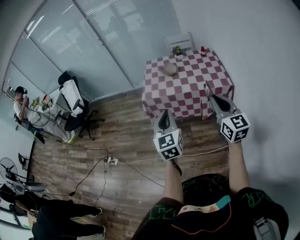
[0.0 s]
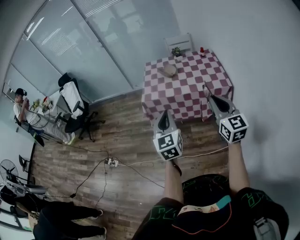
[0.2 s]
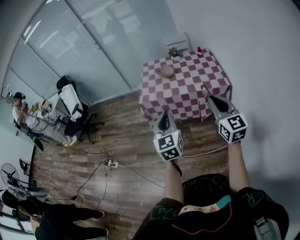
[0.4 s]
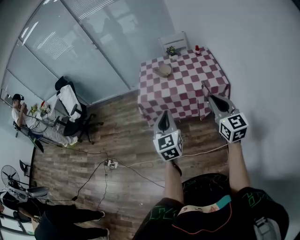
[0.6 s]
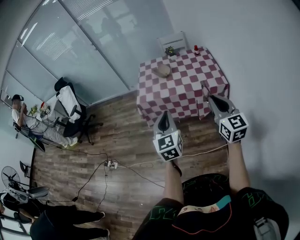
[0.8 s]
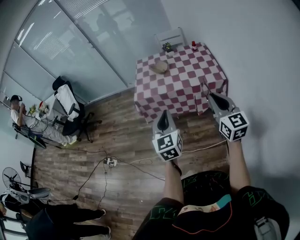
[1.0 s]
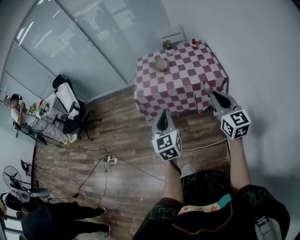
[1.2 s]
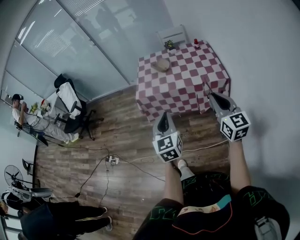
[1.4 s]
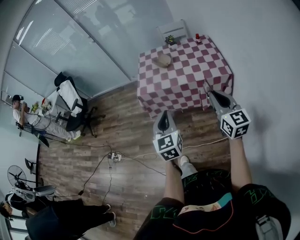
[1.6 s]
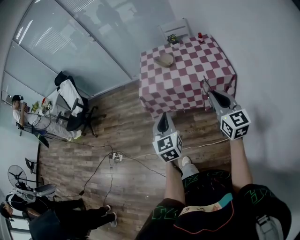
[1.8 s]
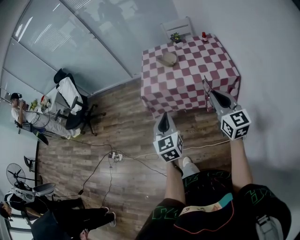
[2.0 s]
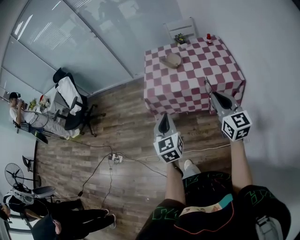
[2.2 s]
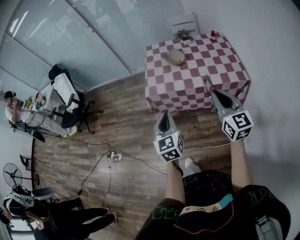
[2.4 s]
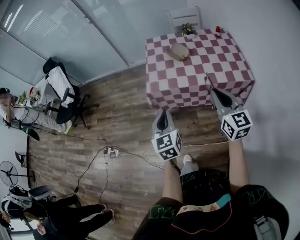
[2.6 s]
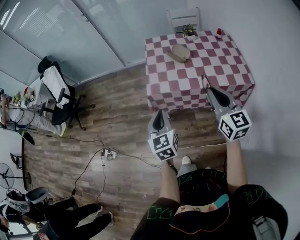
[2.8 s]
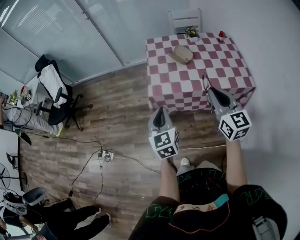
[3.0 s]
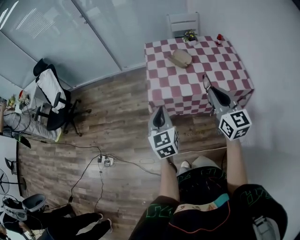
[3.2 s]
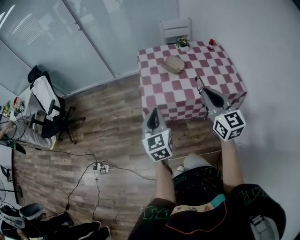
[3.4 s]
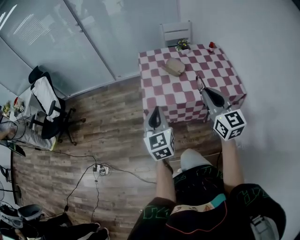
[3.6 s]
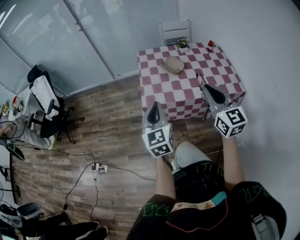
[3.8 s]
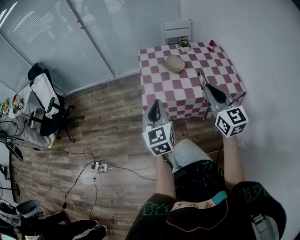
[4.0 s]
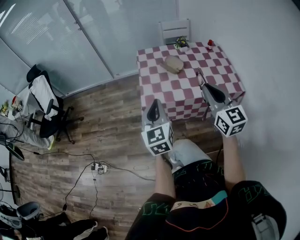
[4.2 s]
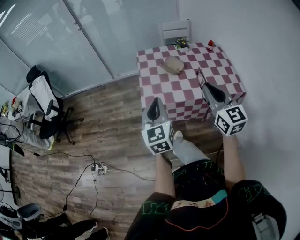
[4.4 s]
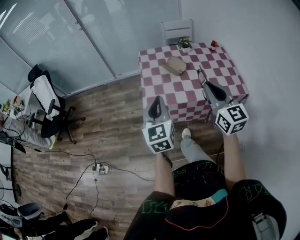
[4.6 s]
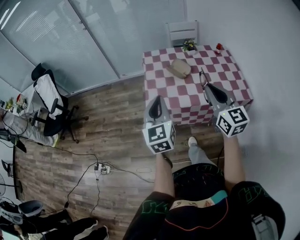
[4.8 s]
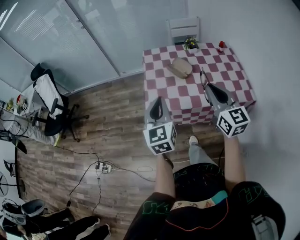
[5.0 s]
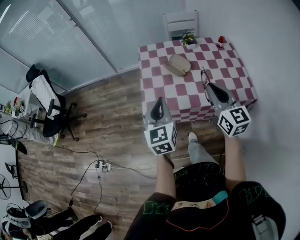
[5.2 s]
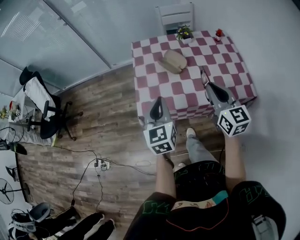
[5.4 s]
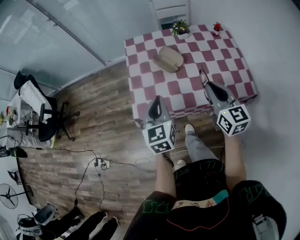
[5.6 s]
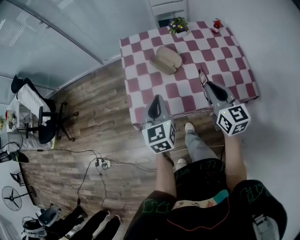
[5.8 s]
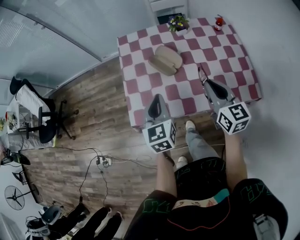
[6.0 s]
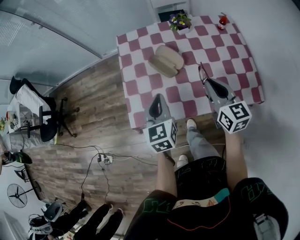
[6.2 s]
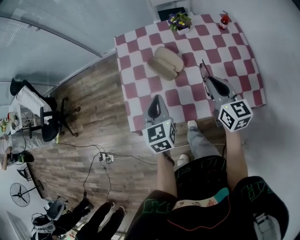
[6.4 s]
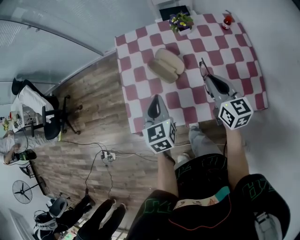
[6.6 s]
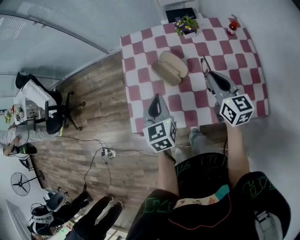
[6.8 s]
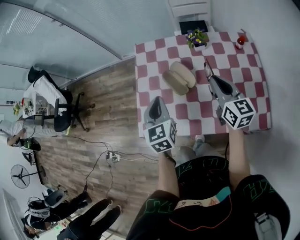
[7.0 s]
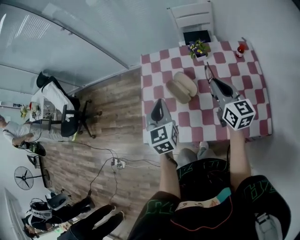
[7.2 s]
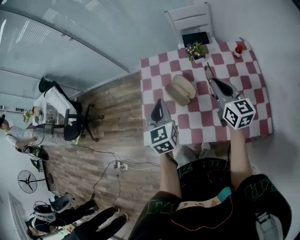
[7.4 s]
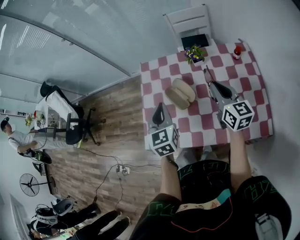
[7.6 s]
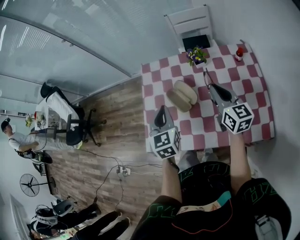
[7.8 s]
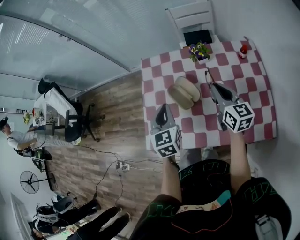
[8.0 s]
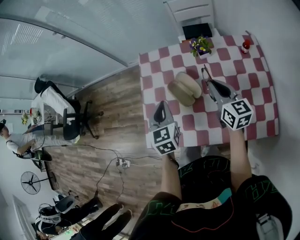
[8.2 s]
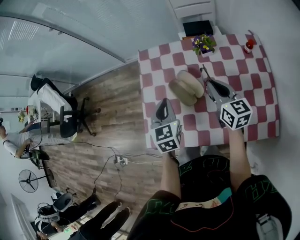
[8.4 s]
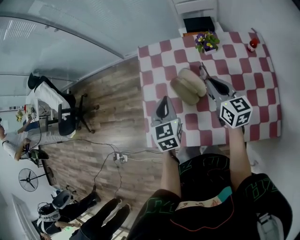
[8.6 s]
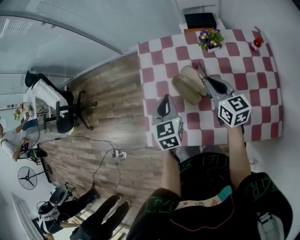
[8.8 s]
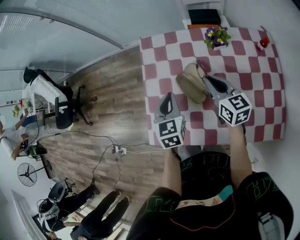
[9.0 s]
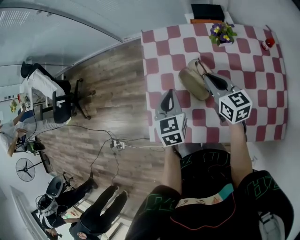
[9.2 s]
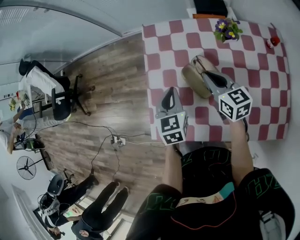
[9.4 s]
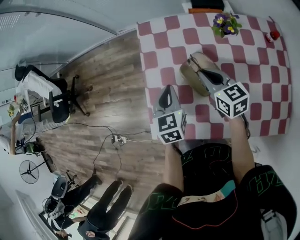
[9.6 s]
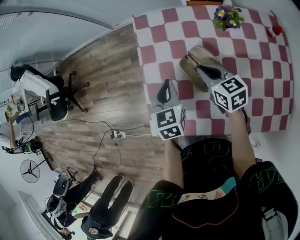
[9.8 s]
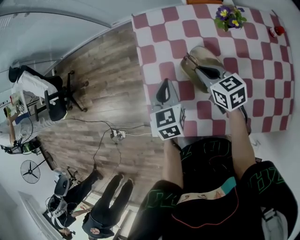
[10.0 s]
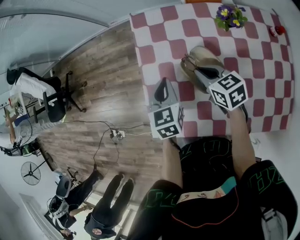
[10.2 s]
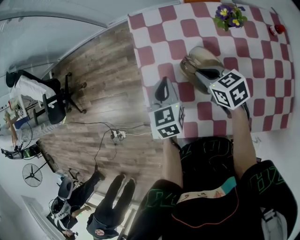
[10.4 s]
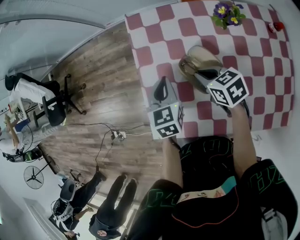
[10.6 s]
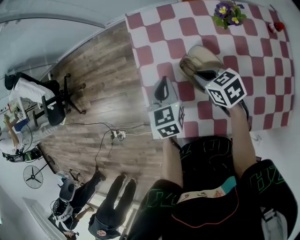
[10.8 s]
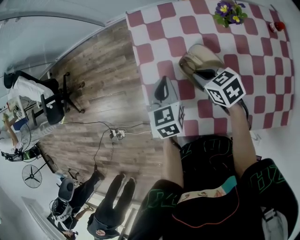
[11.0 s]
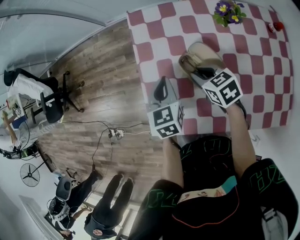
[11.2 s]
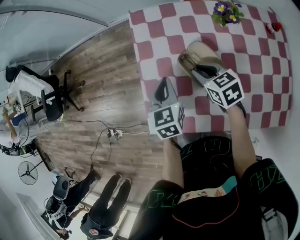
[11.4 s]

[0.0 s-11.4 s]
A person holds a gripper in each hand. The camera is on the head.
0.0 to 1.4 s: The left gripper changes place by some 5 cm. Meanwhile the right gripper changes place by about 5 cm.
1.4 to 2.8 s: Both grippers travel together forward and to the left, approximately 25 cm.
2.8 to 4.2 s: The right gripper changes place by some 5 cm, while the left gripper travels forward and upward by about 10 cm.
4.2 to 5.6 s: Both grippers move forward, downward and to the right, roughly 20 cm.
5.6 to 7.2 s: The two grippers go some 20 cm forward.
7.2 to 8.6 s: Both grippers move downward and forward, roughly 10 cm.
8.6 to 10.0 s: The right gripper goes some 15 cm to the left and downward, and turns by some 30 degrees; the left gripper heads downward, covering some 5 cm.
10.0 to 11.4 s: The grippers make only small movements.

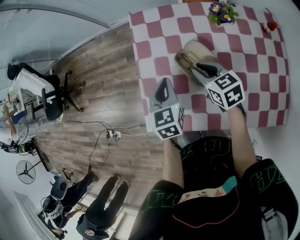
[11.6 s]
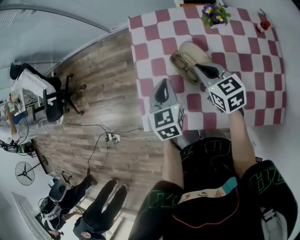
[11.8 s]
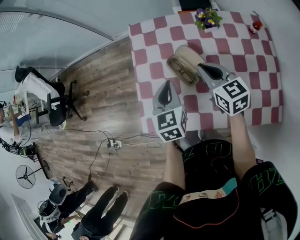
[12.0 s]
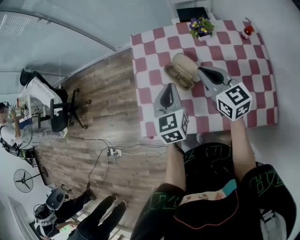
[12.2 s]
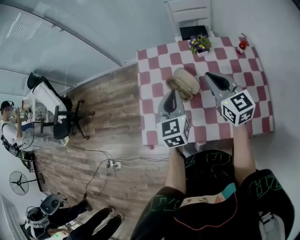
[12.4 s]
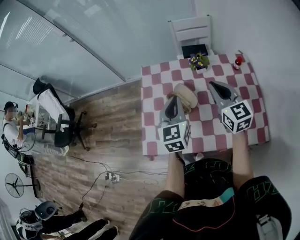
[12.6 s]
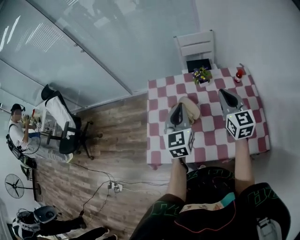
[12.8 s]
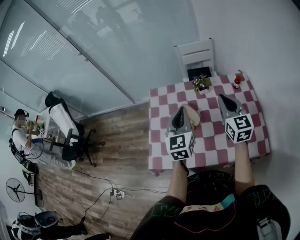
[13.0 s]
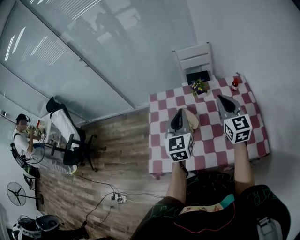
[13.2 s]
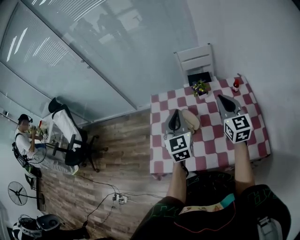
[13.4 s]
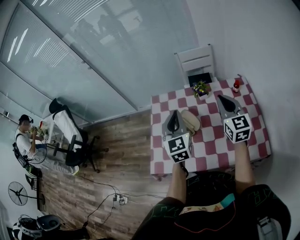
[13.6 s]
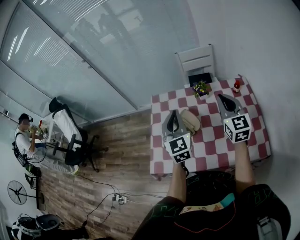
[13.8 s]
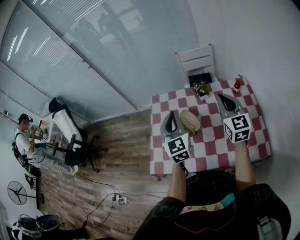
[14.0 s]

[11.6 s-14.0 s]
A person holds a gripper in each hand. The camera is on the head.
11.6 to 12.8 s: Both grippers travel together upward and to the right, approximately 25 cm. The left gripper turns by roughly 30 degrees; the right gripper points its fingers roughly 30 degrees further upward, and closes its fingers.
12.8 to 14.0 s: The grippers move only a little.

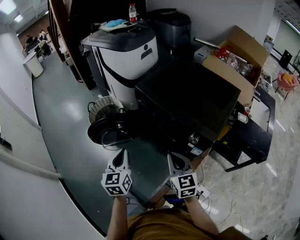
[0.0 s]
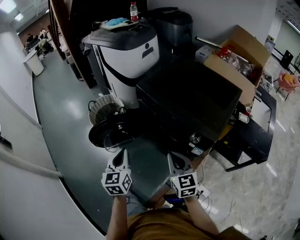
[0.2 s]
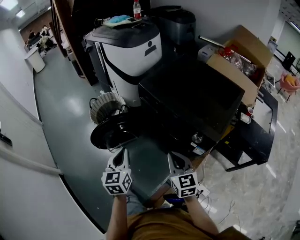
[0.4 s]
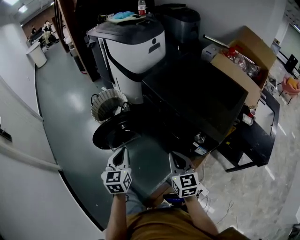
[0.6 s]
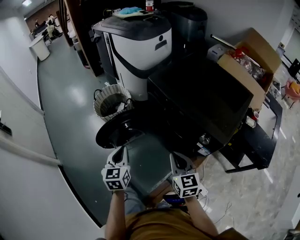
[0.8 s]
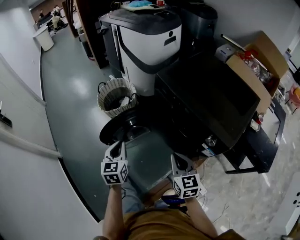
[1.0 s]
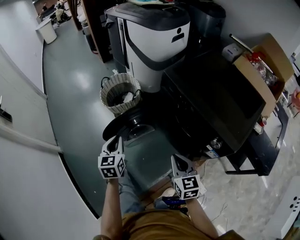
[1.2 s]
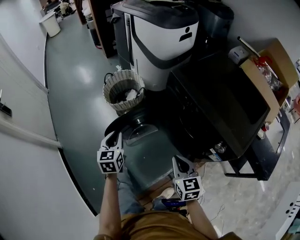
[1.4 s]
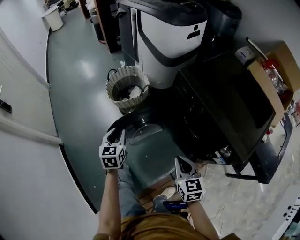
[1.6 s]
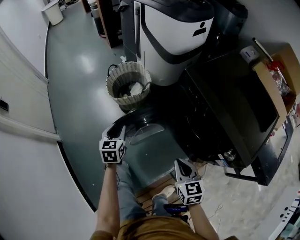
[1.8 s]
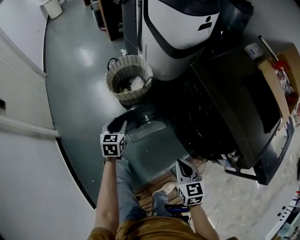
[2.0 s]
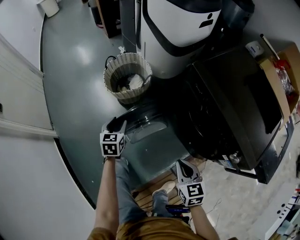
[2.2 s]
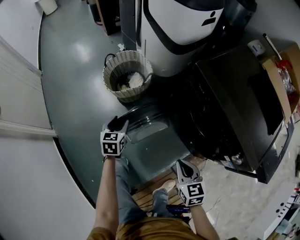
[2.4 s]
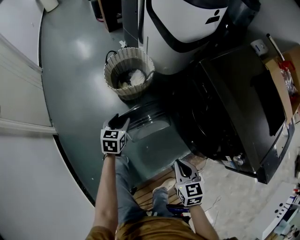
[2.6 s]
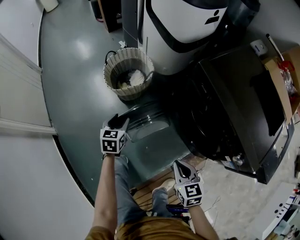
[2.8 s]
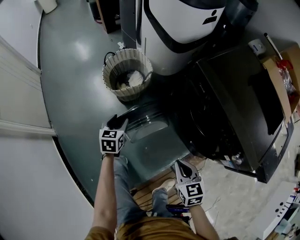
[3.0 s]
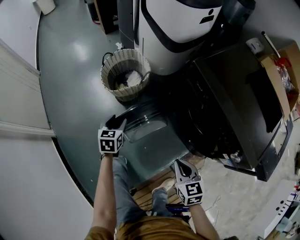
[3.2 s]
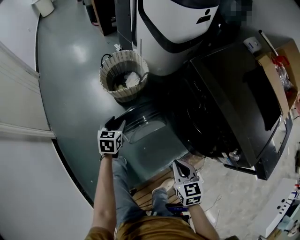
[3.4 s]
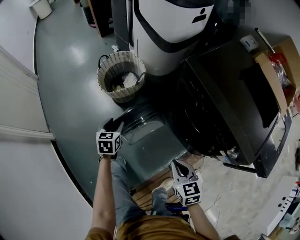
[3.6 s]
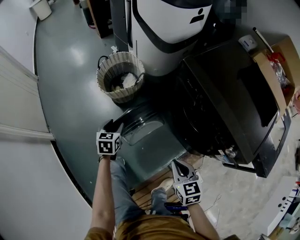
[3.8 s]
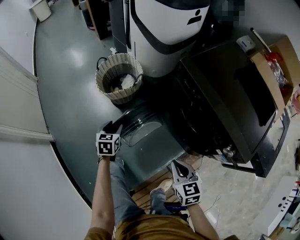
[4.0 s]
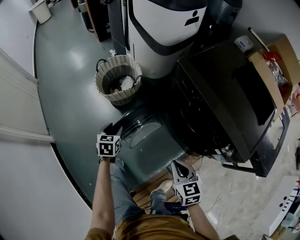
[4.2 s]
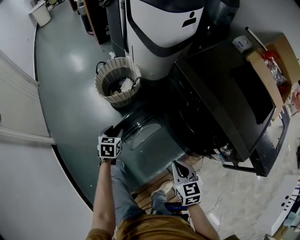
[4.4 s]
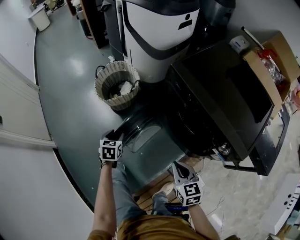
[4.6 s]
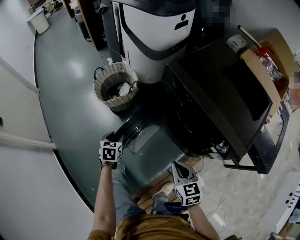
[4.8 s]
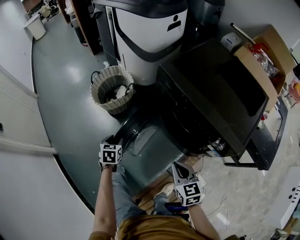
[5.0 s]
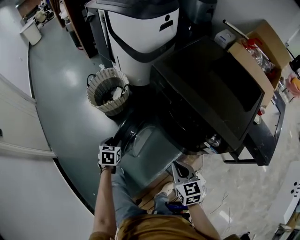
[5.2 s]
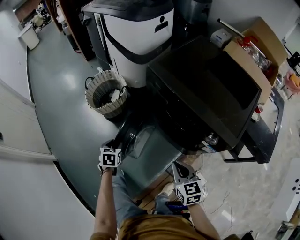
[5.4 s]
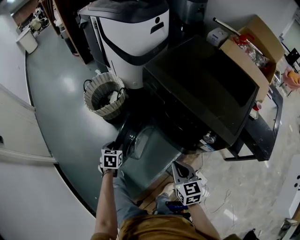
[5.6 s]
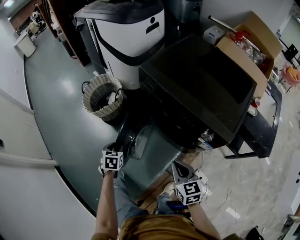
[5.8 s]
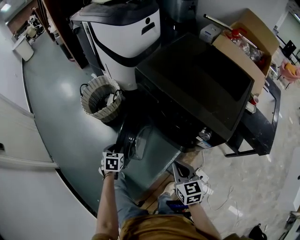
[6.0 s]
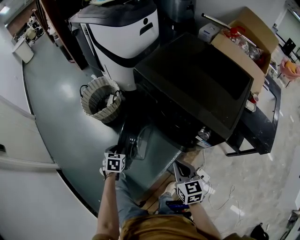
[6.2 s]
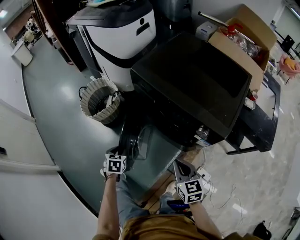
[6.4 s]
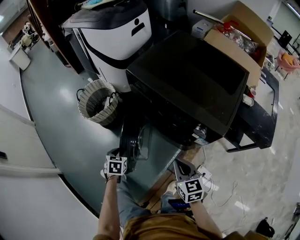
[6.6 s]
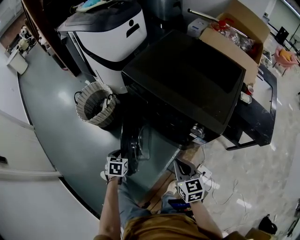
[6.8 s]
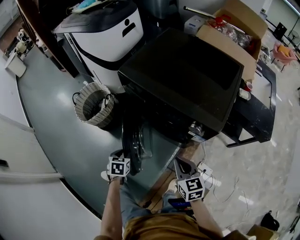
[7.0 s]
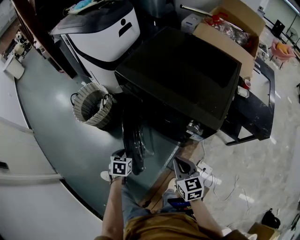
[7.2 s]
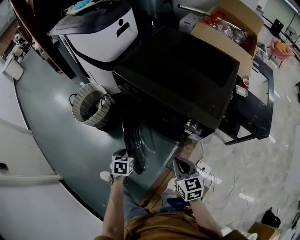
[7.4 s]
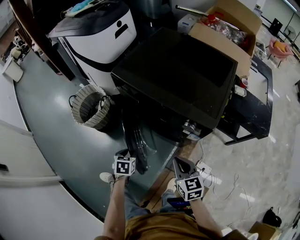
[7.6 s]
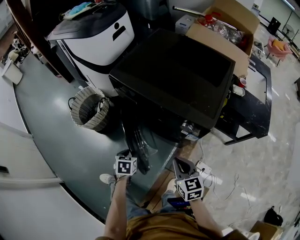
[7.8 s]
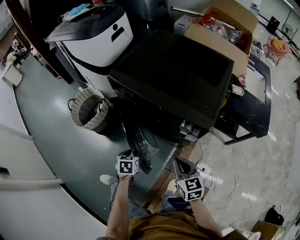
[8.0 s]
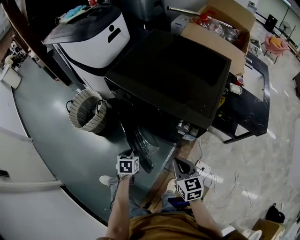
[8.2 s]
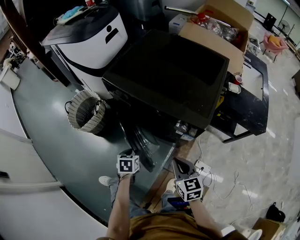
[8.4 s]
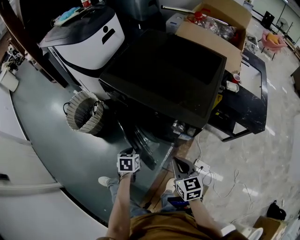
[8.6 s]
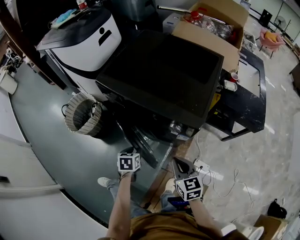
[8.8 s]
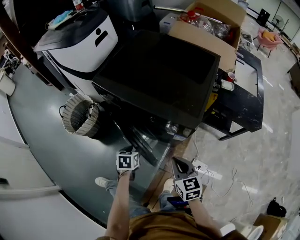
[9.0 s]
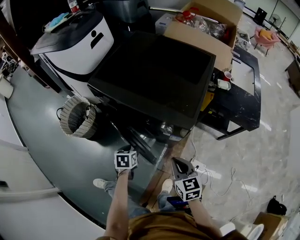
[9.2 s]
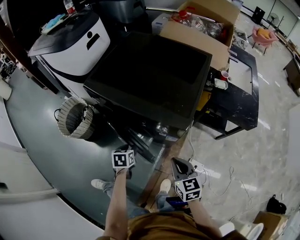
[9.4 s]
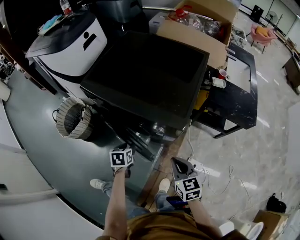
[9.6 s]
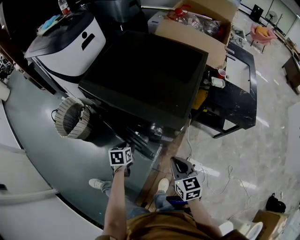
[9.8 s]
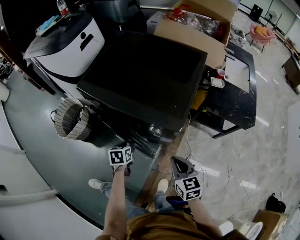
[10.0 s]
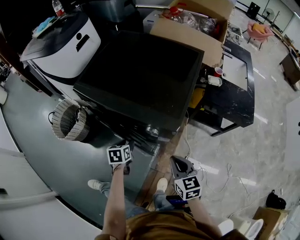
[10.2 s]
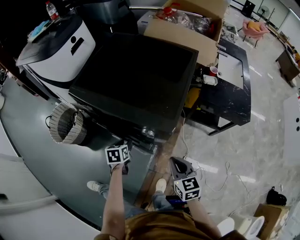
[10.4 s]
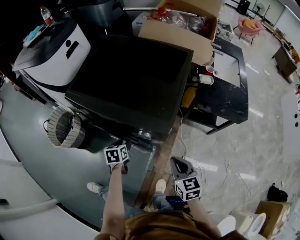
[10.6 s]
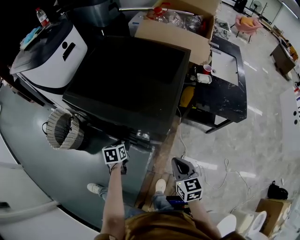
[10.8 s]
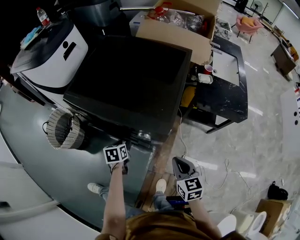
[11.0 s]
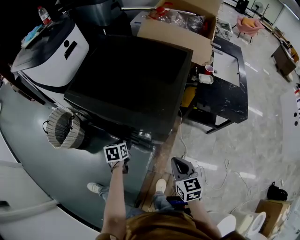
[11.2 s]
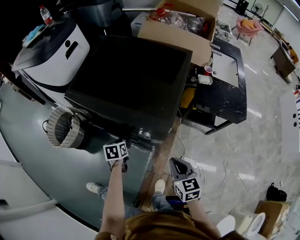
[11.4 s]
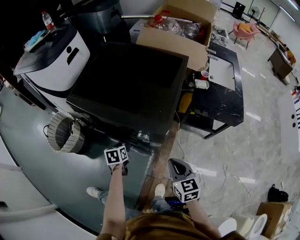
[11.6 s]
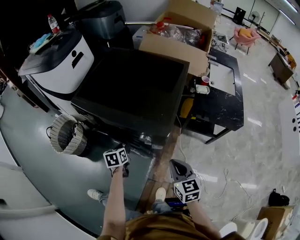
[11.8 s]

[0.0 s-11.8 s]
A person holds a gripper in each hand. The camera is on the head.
0.0 to 1.4 s: The right gripper is displaced to the left and downward by some 10 cm. Meanwhile the left gripper moves to the left, downward and forward, about 20 cm.
1.4 to 3.0 s: The right gripper goes about 10 cm downward, while the left gripper travels downward and forward by about 20 cm, and opens its fingers.
3.0 to 4.4 s: The right gripper moves about 5 cm. The left gripper is displaced backward by approximately 5 cm.
4.4 to 6.0 s: Both grippers move to the right and backward, approximately 10 cm.
6.0 to 7.4 s: The left gripper shifts roughly 10 cm to the right, while the right gripper goes approximately 5 cm to the right.
7.4 to 8.8 s: The right gripper moves to the right, roughly 5 cm. The left gripper shifts approximately 10 cm to the right.
8.8 to 10.4 s: The left gripper moves forward and to the right, roughly 10 cm. The right gripper is displaced to the right by roughly 10 cm.
10.4 to 11.8 s: The grippers stay close to where they were, moving slightly.
